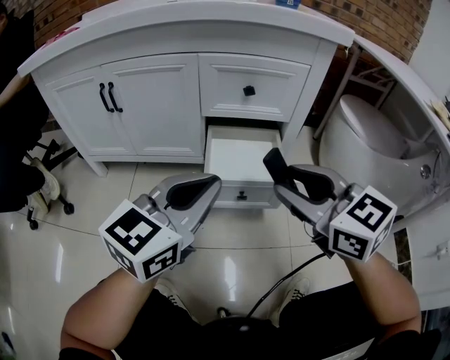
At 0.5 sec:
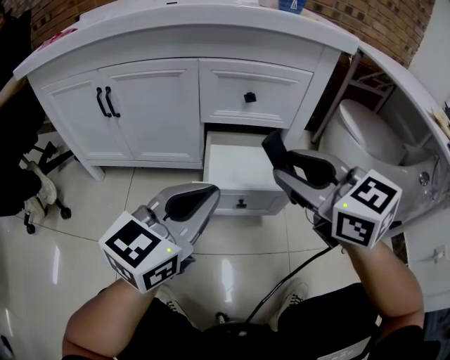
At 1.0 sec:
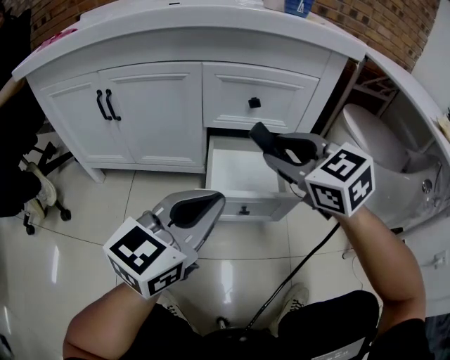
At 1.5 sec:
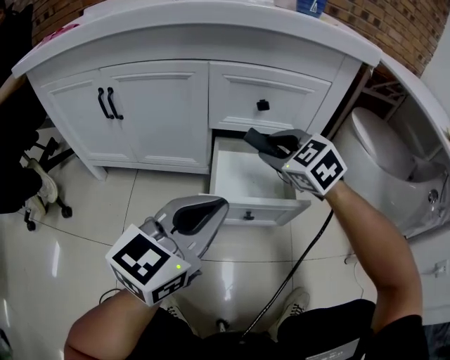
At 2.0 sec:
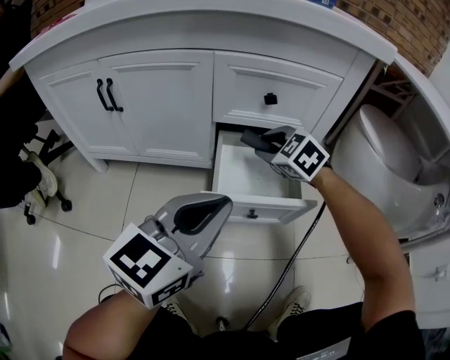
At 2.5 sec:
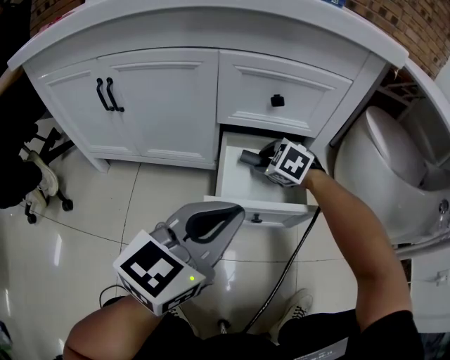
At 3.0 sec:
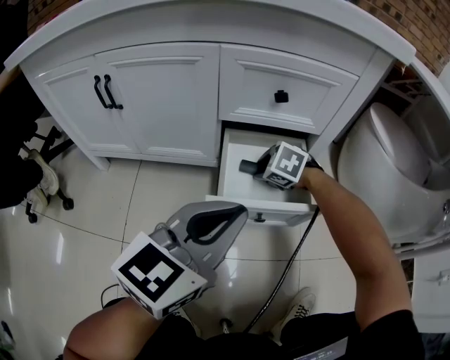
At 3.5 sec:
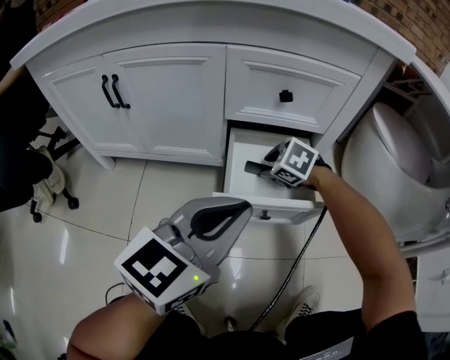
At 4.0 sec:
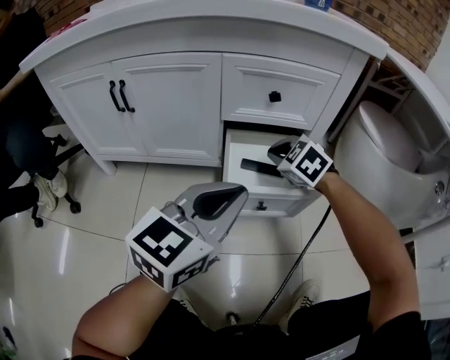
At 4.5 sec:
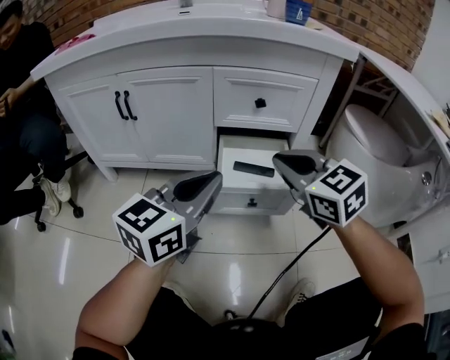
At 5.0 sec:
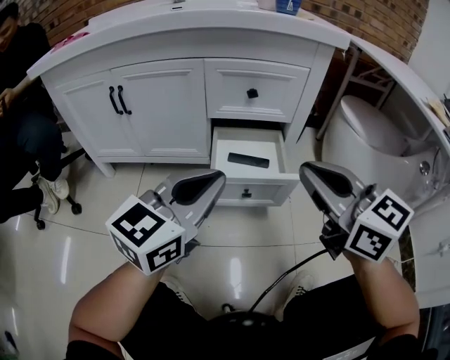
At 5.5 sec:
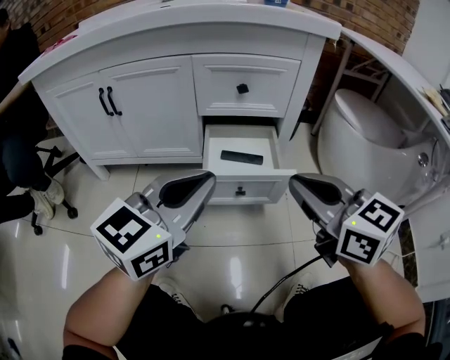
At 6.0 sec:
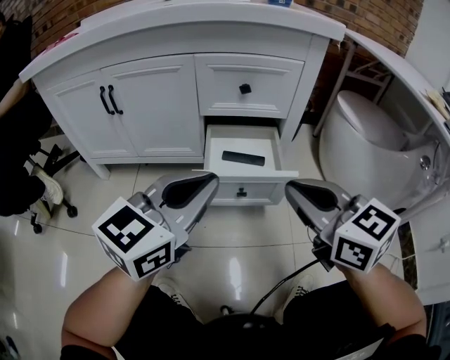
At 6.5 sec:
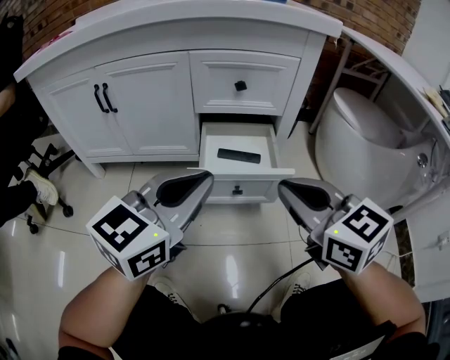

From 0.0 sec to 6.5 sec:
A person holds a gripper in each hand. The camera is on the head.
From 0.0 sec to 2.0 sec: The right gripper goes about 30 cm forward and downward, and swivels some 40 degrees.
From 2.0 sec to 4.5 sec: The right gripper is displaced backward and upward by roughly 20 cm, changes its angle by roughly 30 degrees, and closes its fingers.
From 4.5 sec to 6.5 sec: The right gripper is displaced backward by about 10 cm.

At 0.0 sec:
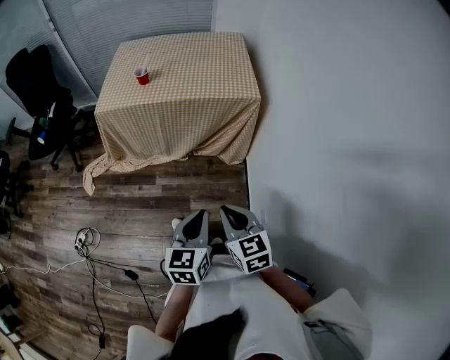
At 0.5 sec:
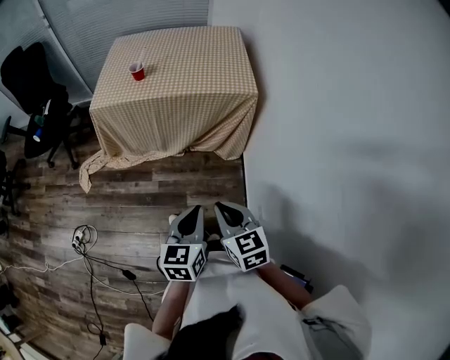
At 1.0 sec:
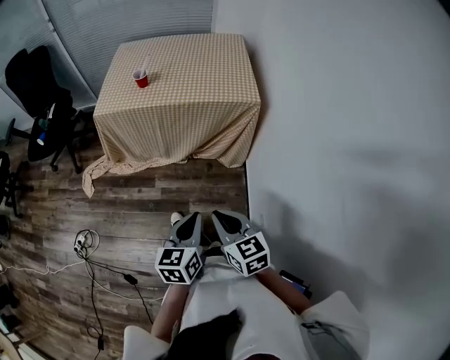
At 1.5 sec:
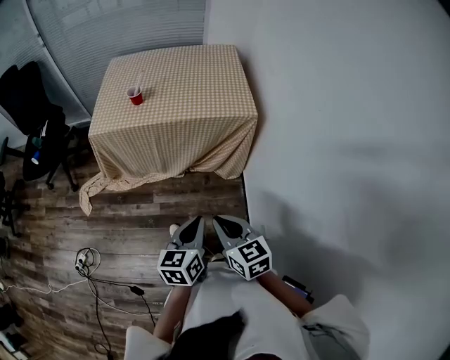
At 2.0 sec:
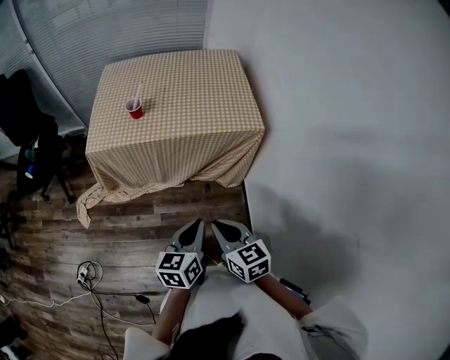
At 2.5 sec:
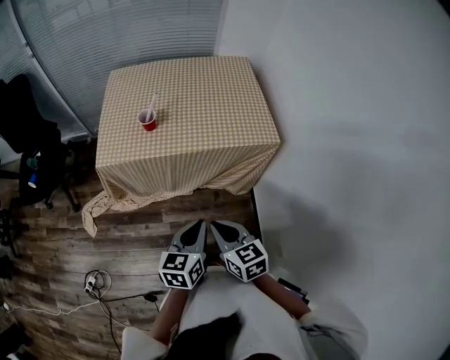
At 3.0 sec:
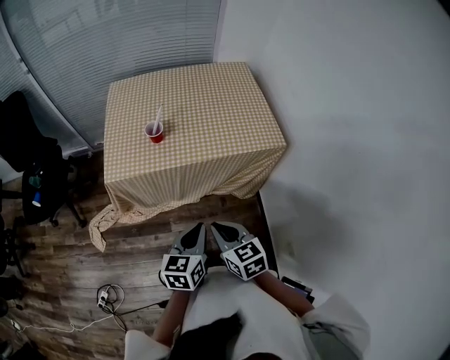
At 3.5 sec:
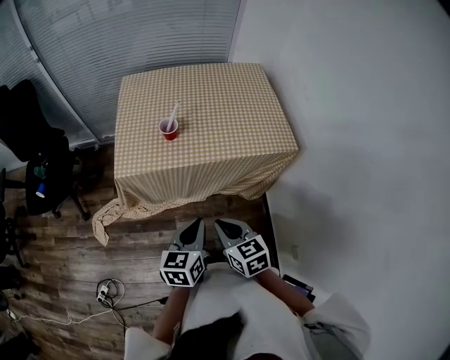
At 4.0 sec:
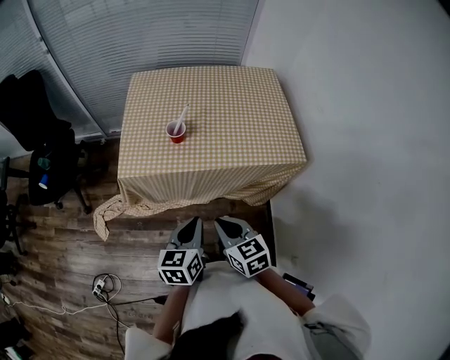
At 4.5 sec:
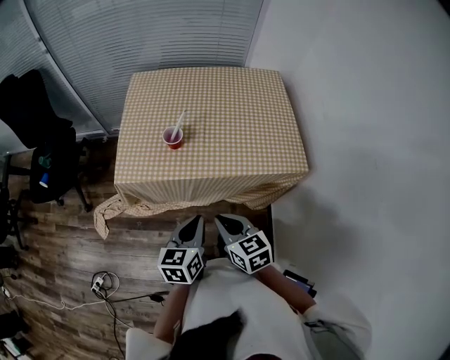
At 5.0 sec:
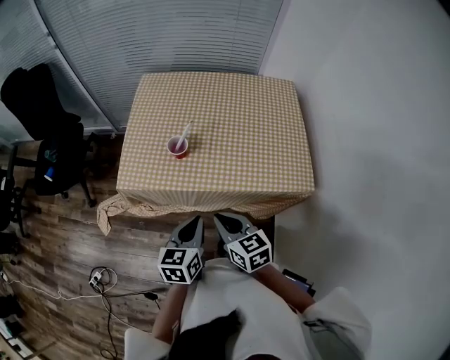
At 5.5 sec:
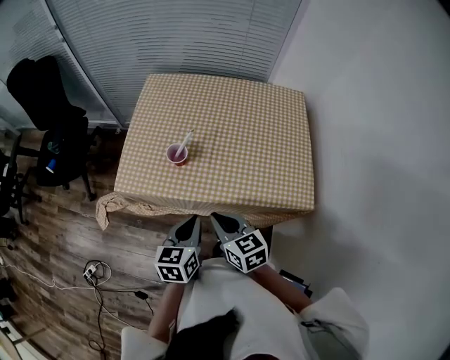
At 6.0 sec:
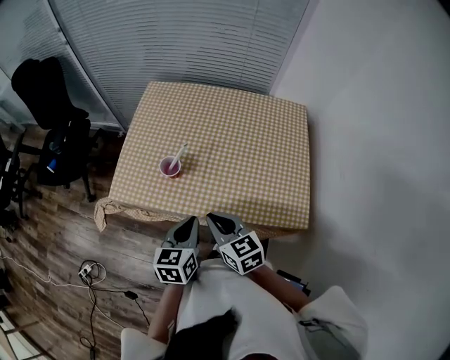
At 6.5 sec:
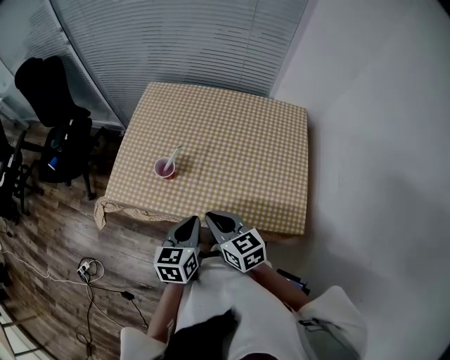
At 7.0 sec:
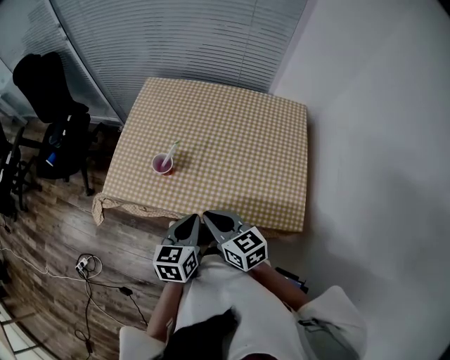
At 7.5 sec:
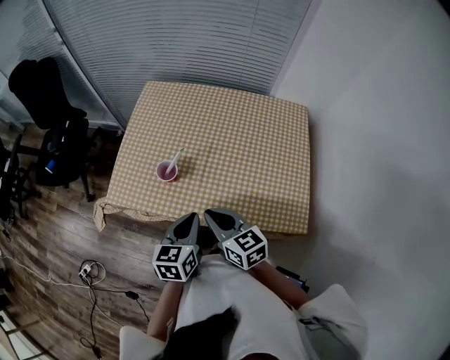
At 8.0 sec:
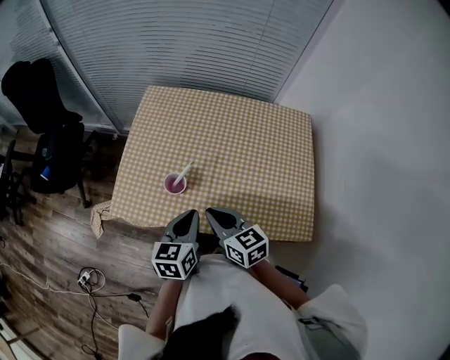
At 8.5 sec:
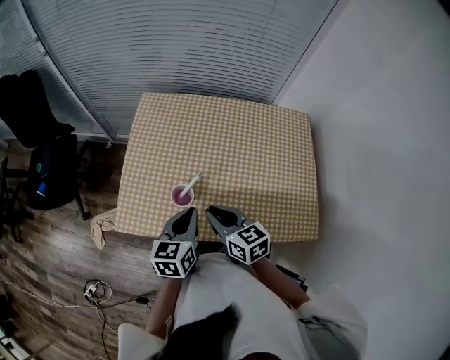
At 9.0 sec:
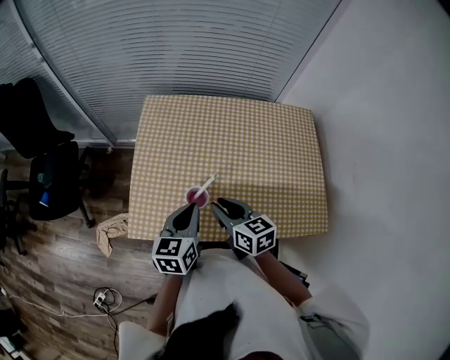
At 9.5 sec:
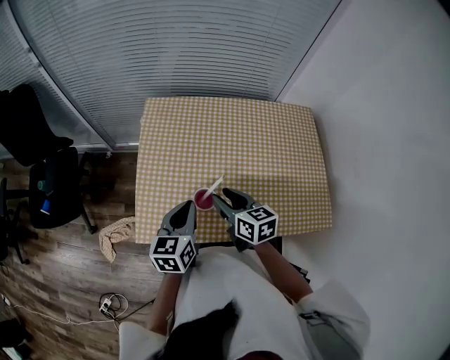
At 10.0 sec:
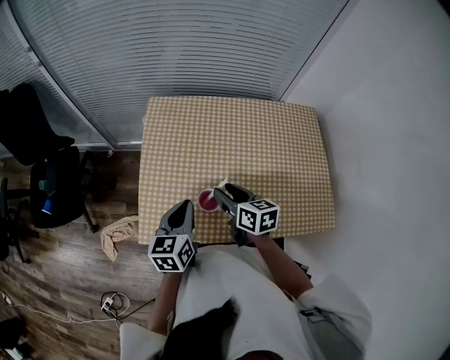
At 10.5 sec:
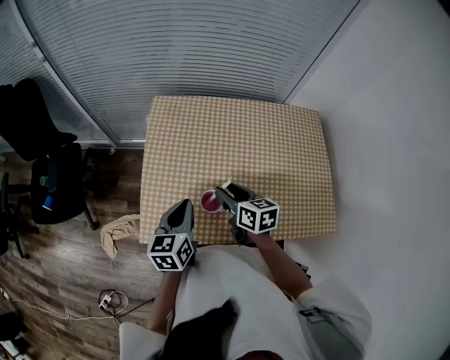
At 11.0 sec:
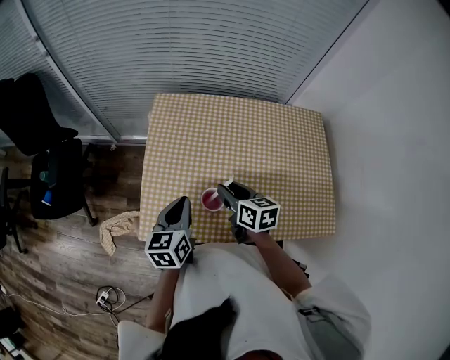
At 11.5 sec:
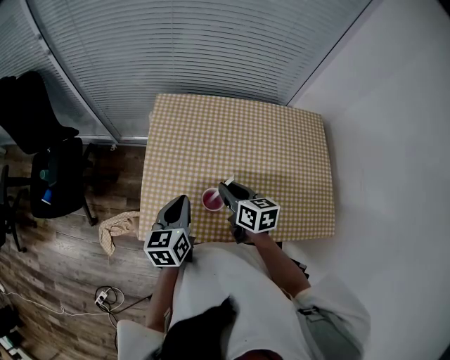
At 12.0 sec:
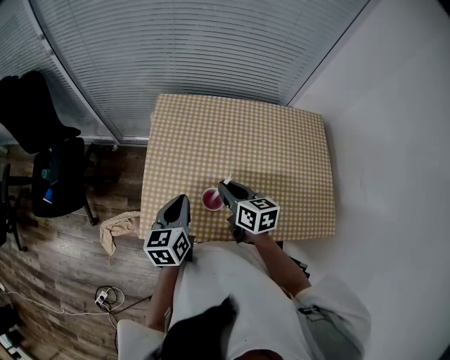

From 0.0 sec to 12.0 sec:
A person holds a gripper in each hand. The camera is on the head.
From 0.0 sec to 2.0 sec: The left gripper shifts about 15 cm forward. Meanwhile the right gripper is displaced forward and to the left by roughly 15 cm.
From 2.0 sec to 4.0 sec: The right gripper goes some 20 cm forward and to the left. Meanwhile the left gripper is displaced to the left and forward by about 20 cm.
From 4.0 sec to 6.0 sec: Both grippers move forward and to the right, roughly 20 cm.
From 6.0 sec to 8.0 sec: Both grippers travel together forward, approximately 10 cm.
From 8.0 sec to 10.0 sec: The left gripper is displaced to the left and forward by some 15 cm; the right gripper moves forward, approximately 15 cm, changes its angle by about 20 degrees, and opens.
From 10.0 sec to 12.0 sec: The right gripper closes up.

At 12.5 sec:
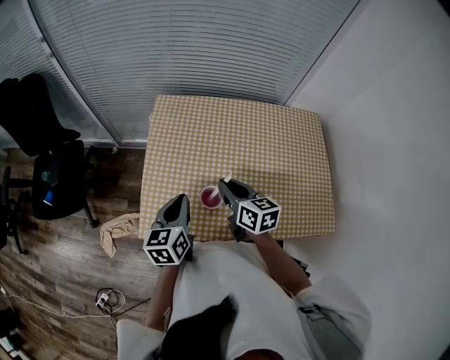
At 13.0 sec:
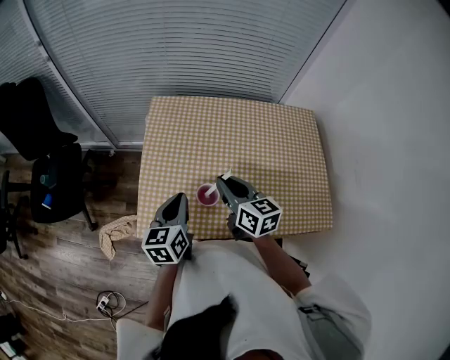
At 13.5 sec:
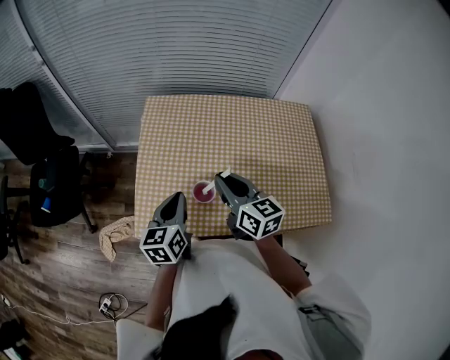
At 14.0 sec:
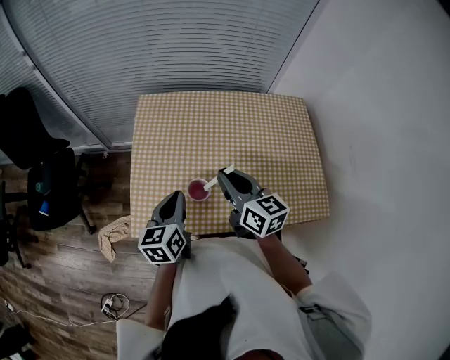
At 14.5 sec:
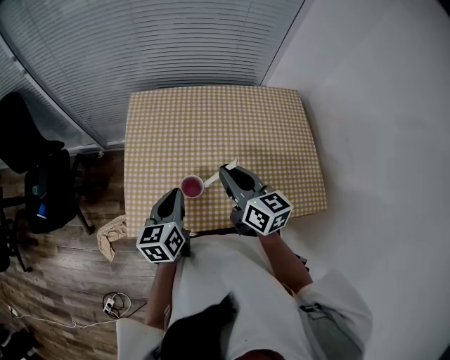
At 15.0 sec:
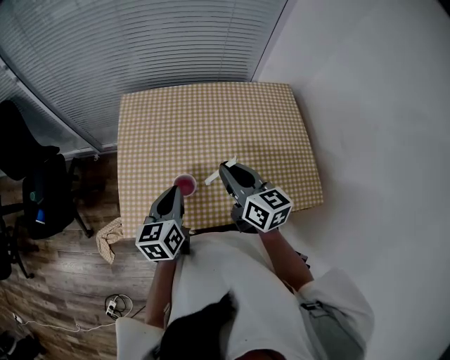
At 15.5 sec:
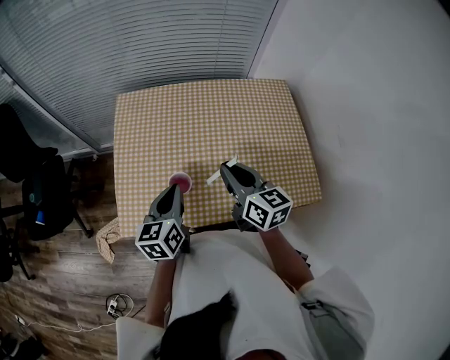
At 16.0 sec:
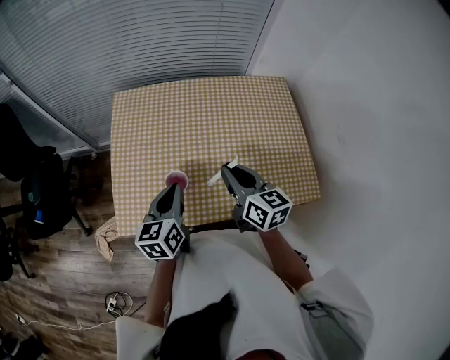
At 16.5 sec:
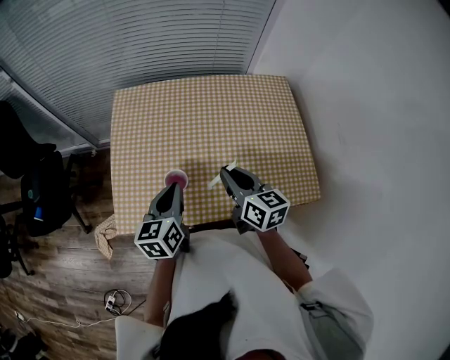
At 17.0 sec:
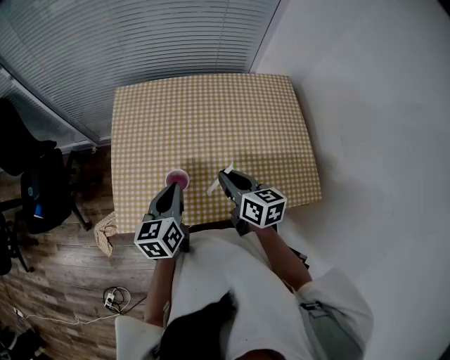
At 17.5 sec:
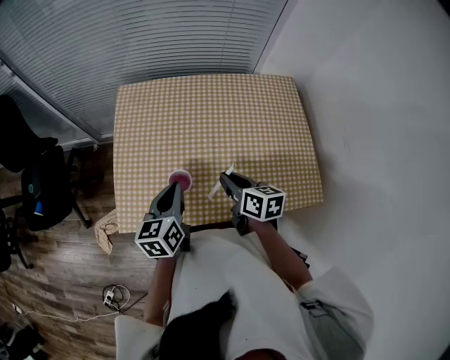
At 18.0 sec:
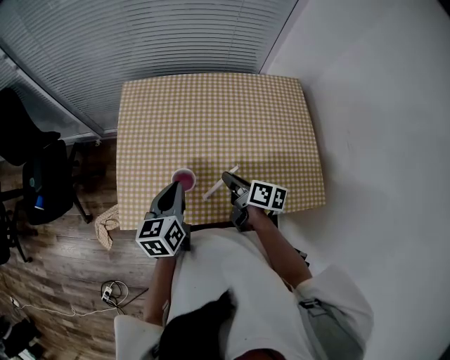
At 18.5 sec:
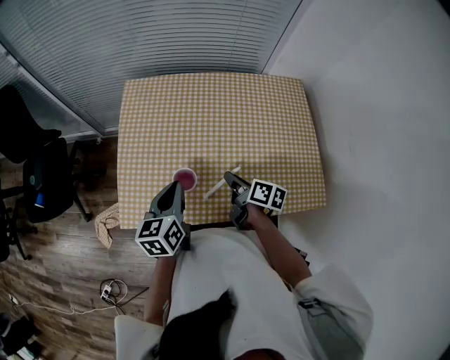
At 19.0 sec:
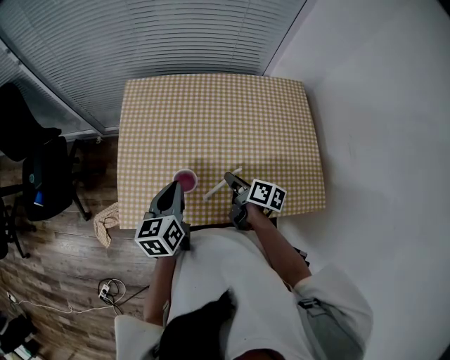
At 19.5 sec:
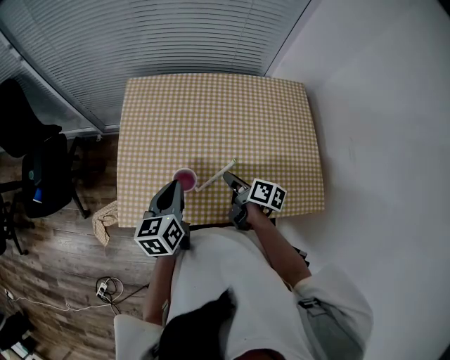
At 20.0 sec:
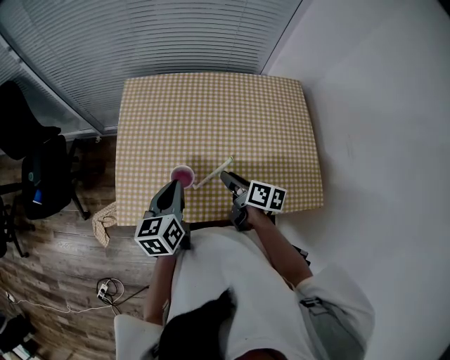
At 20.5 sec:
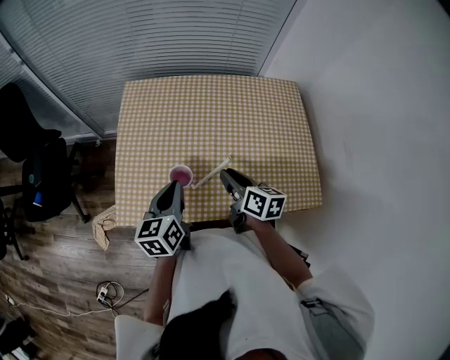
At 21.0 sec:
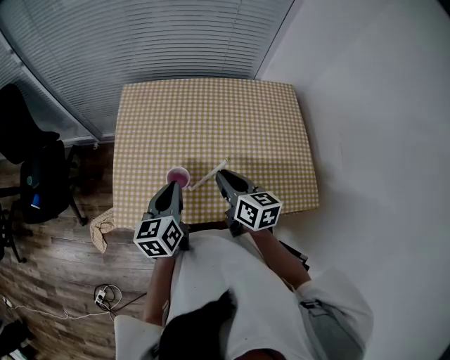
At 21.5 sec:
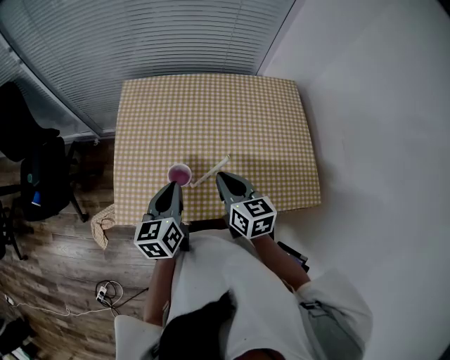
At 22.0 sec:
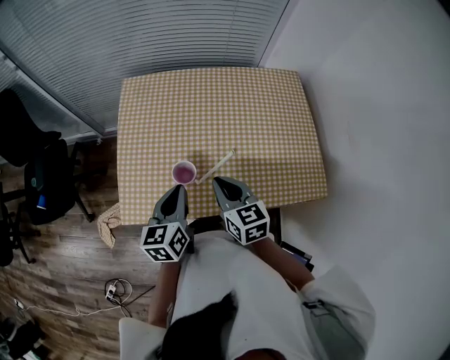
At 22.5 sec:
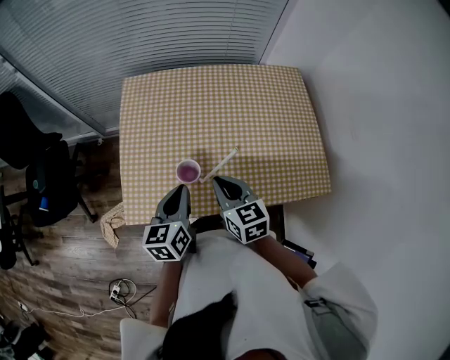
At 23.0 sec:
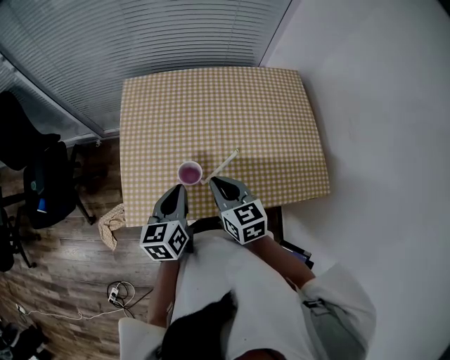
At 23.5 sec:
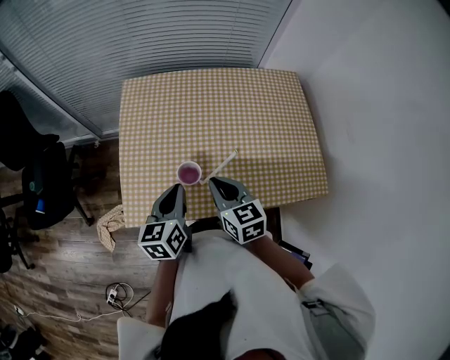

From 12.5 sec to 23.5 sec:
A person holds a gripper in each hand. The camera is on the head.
From 12.5 sec to 14.5 sec: The right gripper goes some 10 cm upward and to the right.
From 14.5 sec to 16.0 sec: The right gripper heads to the right, covering approximately 5 cm.
From 16.0 sec to 18.0 sec: The right gripper moves downward, some 10 cm, and swivels about 40 degrees.
From 18.0 sec to 20.0 sec: The right gripper opens its fingers.
From 20.0 sec to 21.5 sec: The right gripper goes some 10 cm upward, rotates about 40 degrees, and closes up.
From 21.5 sec to 23.5 sec: The right gripper travels to the left by about 5 cm.
